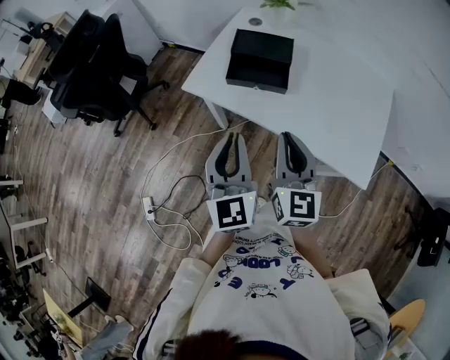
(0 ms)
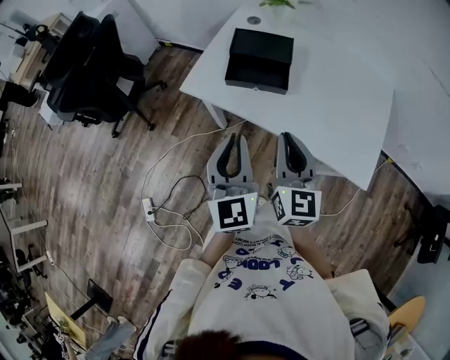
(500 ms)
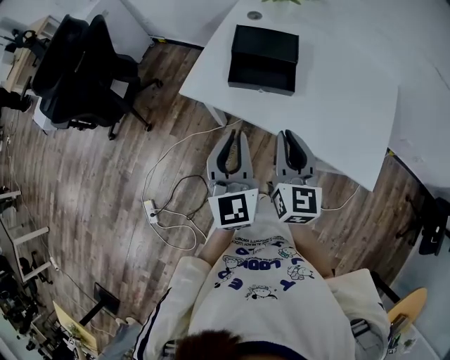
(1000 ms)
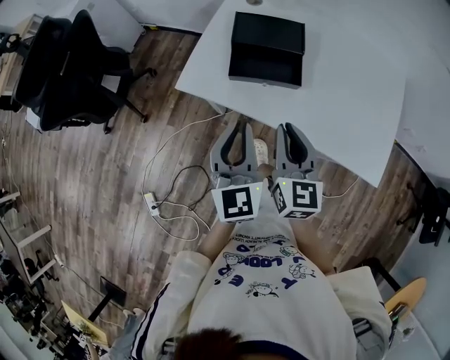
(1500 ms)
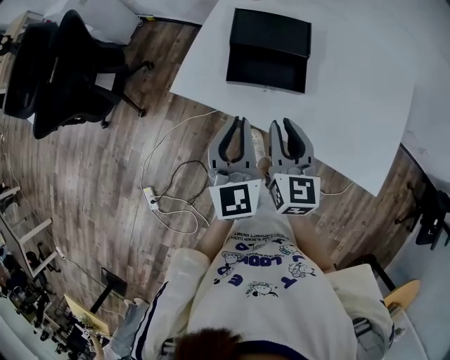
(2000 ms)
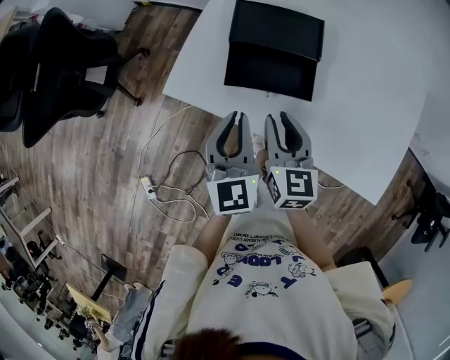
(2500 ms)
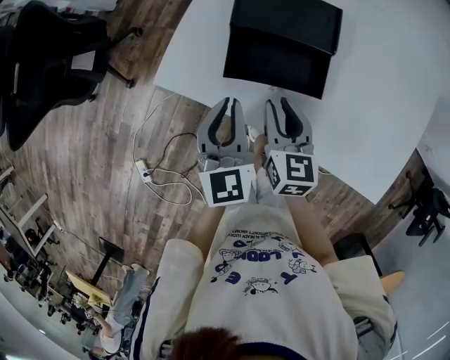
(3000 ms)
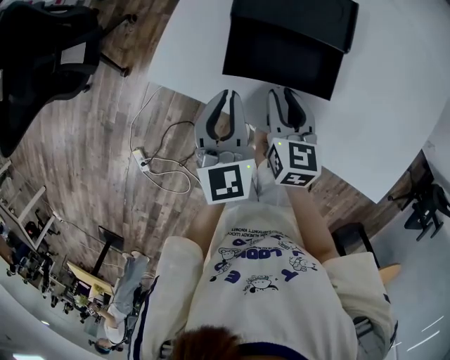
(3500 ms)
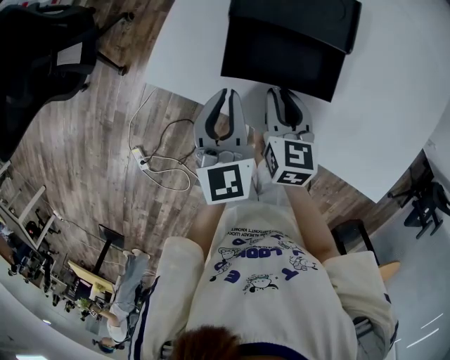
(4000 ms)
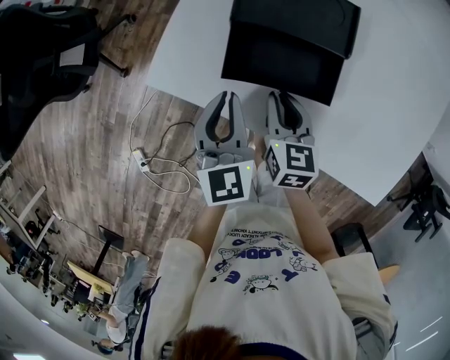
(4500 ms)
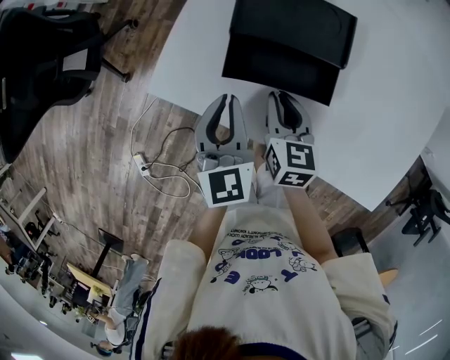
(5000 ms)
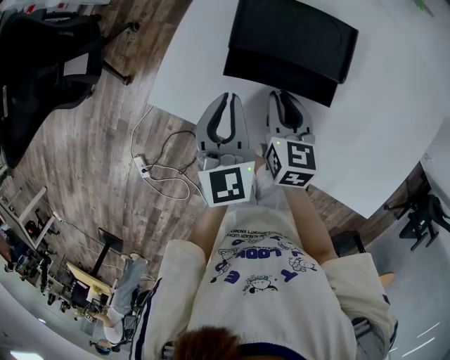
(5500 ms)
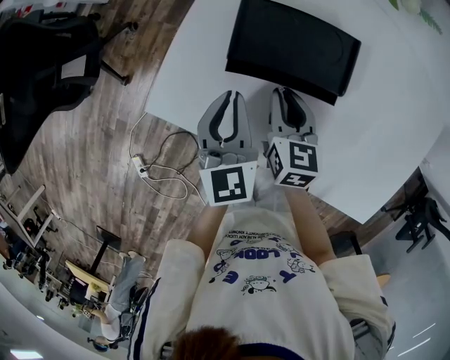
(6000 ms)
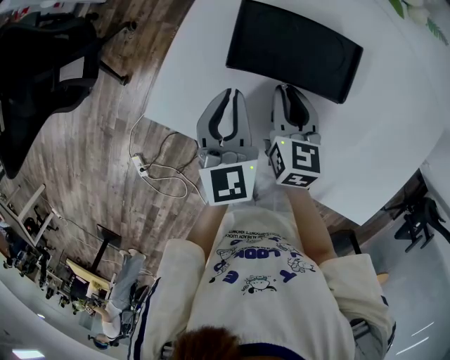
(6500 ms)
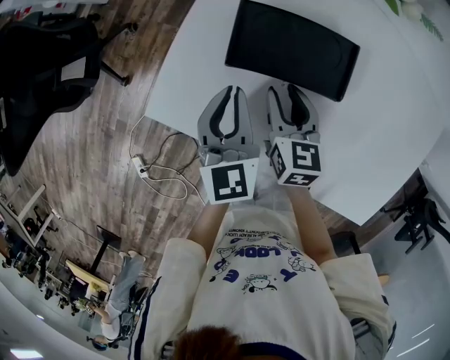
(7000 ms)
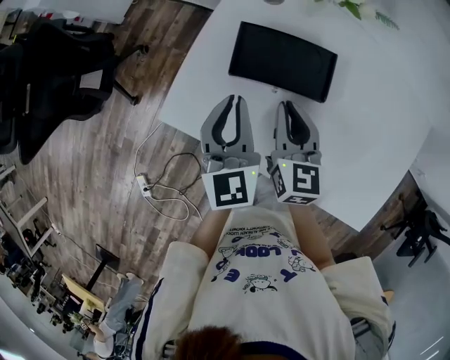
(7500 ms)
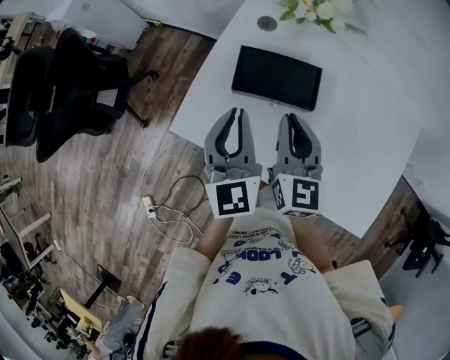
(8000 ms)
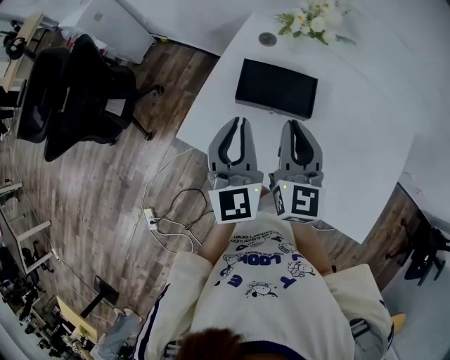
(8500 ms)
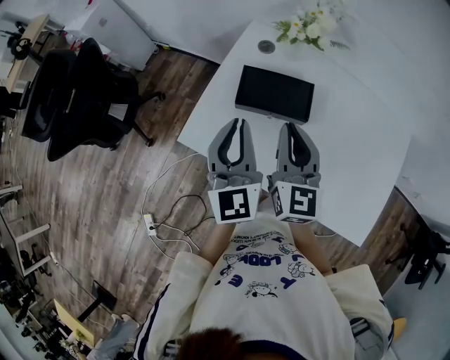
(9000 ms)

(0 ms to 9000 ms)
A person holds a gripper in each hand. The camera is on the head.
0 ms - 2000 ms: Both grippers move forward and downward, roughly 15 cm.
2000 ms - 4500 ms: The grippers both shift downward and forward by about 20 cm. The right gripper turns by about 20 degrees.
4500 ms - 7000 ms: Both grippers move forward, some 10 cm. The right gripper opens.
7000 ms - 9000 ms: The grippers both shift upward by about 20 cm. The left gripper swivels roughly 20 degrees. The right gripper rotates about 30 degrees, and closes up.

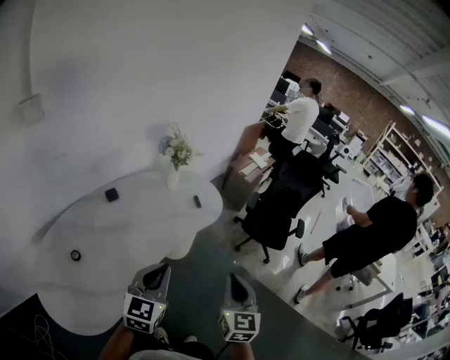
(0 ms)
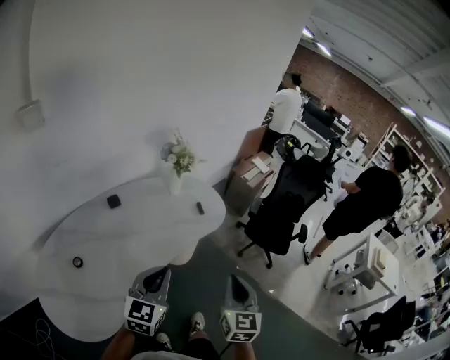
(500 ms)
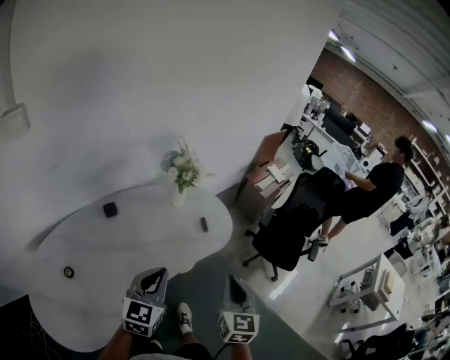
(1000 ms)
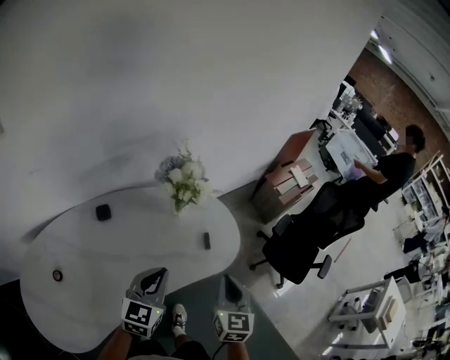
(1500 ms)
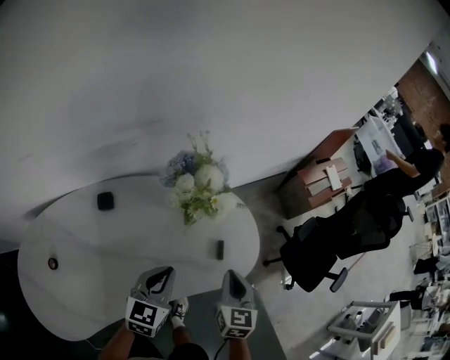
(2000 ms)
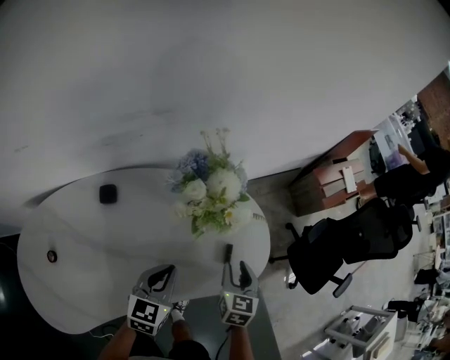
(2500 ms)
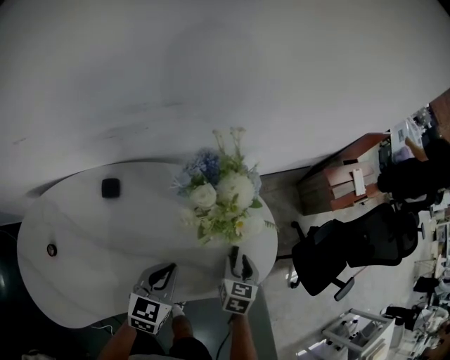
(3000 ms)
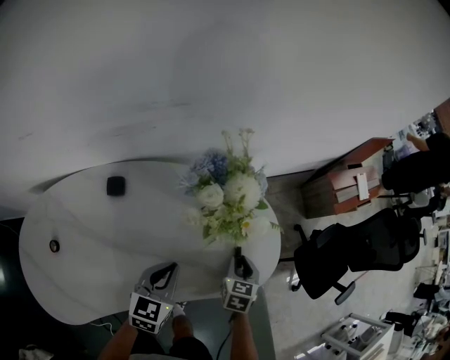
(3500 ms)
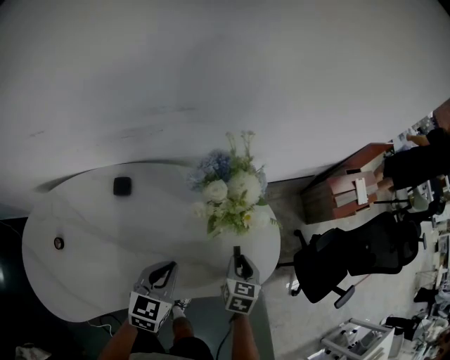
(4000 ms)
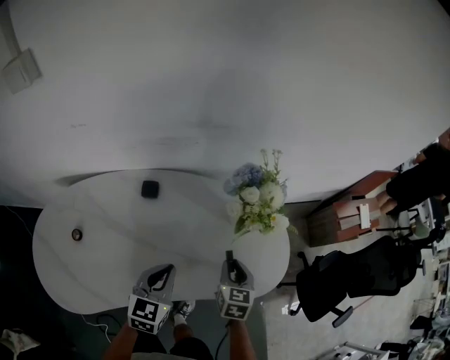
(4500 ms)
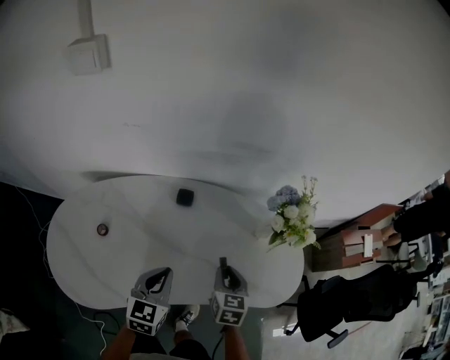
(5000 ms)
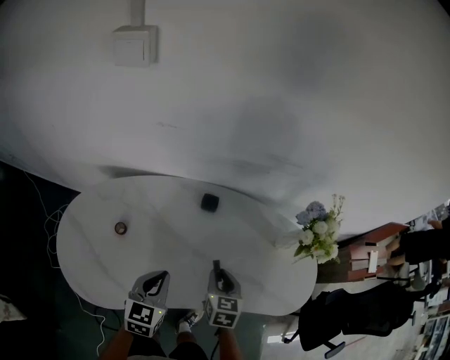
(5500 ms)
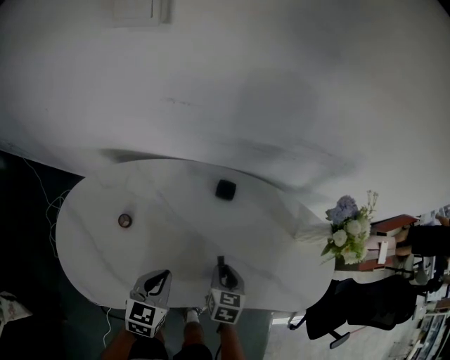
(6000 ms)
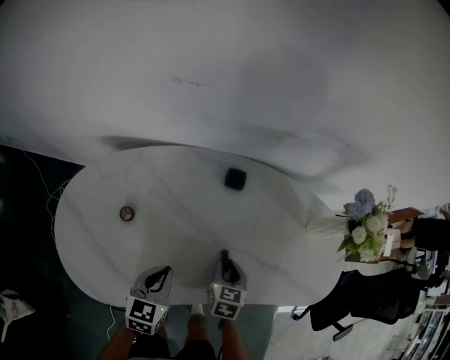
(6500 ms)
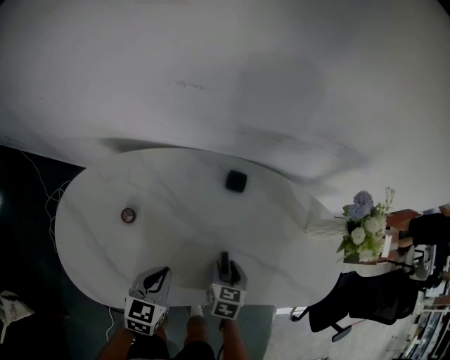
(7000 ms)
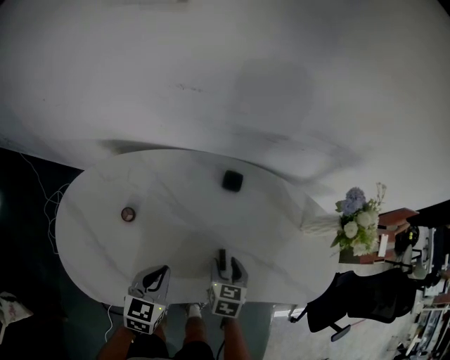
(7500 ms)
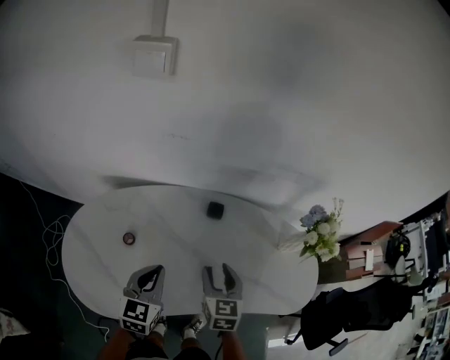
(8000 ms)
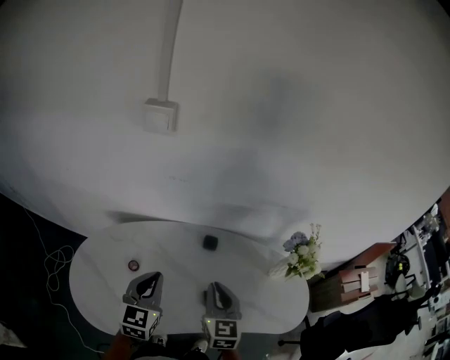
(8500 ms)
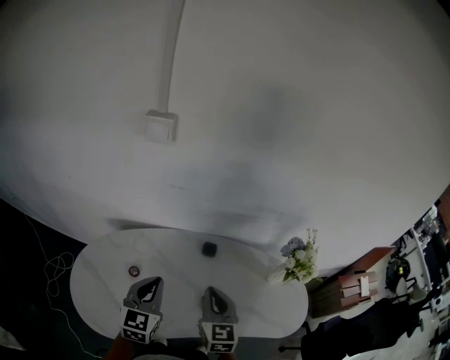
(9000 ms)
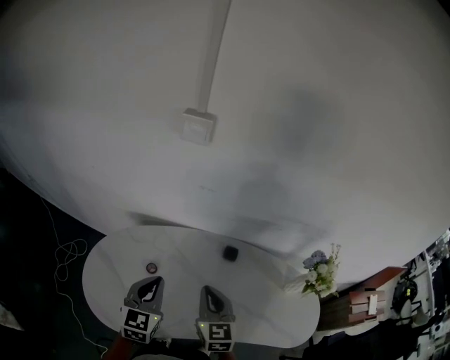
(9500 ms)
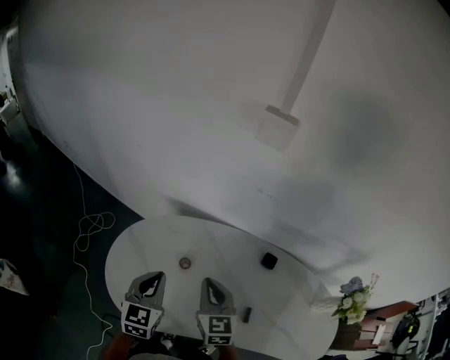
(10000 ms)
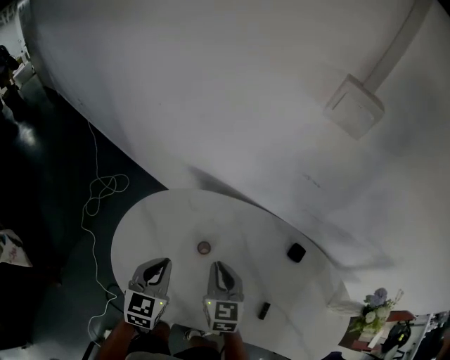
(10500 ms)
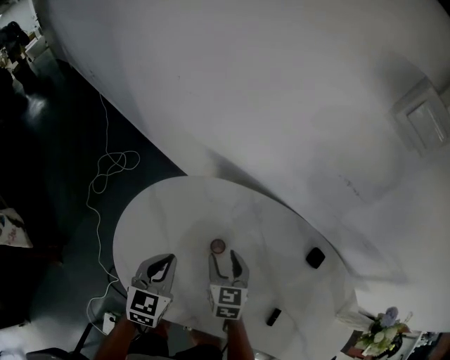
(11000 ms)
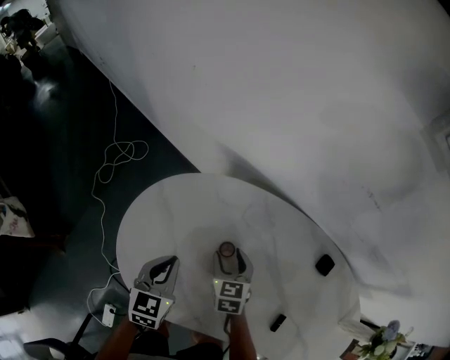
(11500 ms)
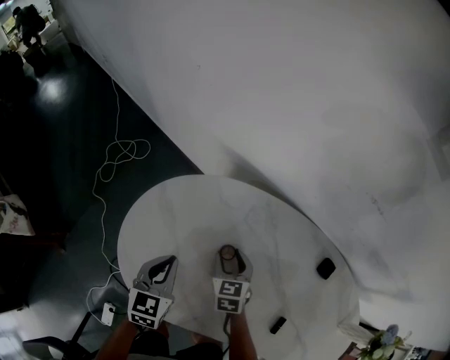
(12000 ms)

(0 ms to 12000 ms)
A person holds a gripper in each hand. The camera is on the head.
0 ms - 2000 ms: The grippers both shift forward and downward by some 40 cm. The left gripper swivels roughly 30 degrees, while the right gripper turns by about 30 degrees.
2000 ms - 4000 ms: The right gripper travels downward and forward by some 15 cm. Meanwhile the left gripper moves about 5 cm.
4000 ms - 6000 ms: Both grippers travel together to the left, about 30 cm. The right gripper changes its angle by some 20 degrees. The left gripper turns by some 20 degrees.
6000 ms - 8000 ms: The grippers both shift upward by roughly 10 cm. The right gripper opens its fingers.
8000 ms - 10000 ms: The left gripper ends up some 20 cm from where it was, and rotates approximately 20 degrees. Meanwhile the right gripper shifts by about 25 cm, turns by some 30 degrees, and closes.
10000 ms - 12000 ms: The left gripper moves downward and to the left, some 20 cm, while the right gripper is displaced downward by some 25 cm, swivels some 30 degrees, and opens.

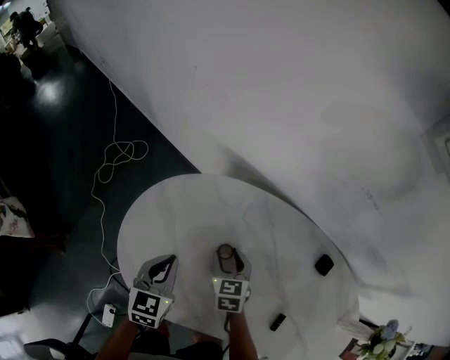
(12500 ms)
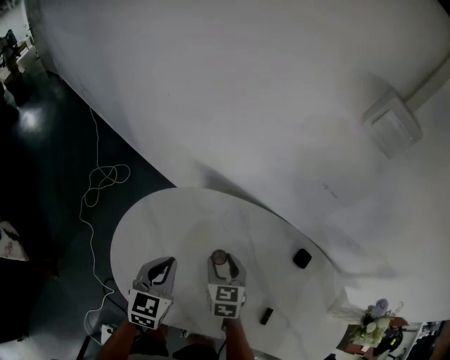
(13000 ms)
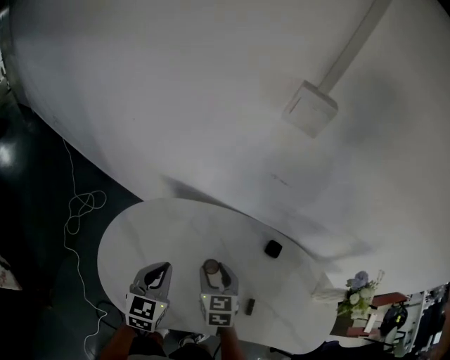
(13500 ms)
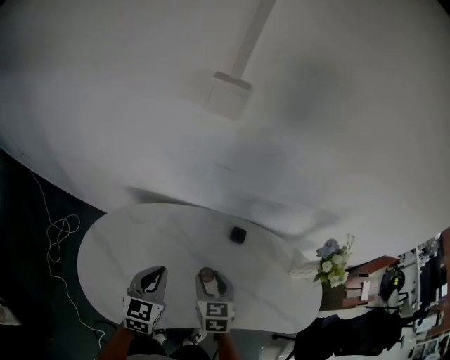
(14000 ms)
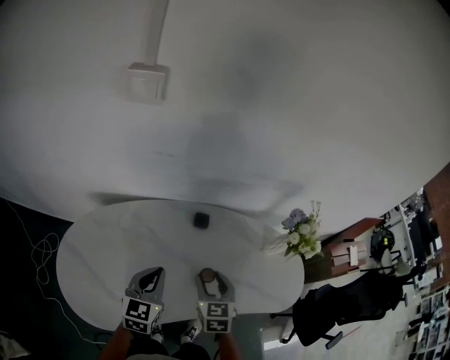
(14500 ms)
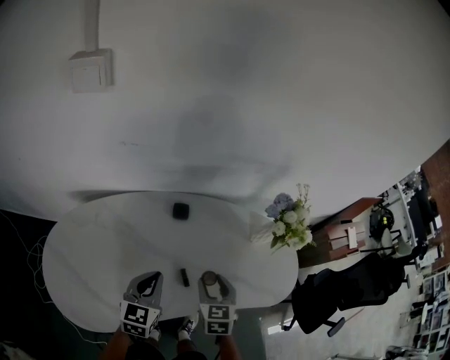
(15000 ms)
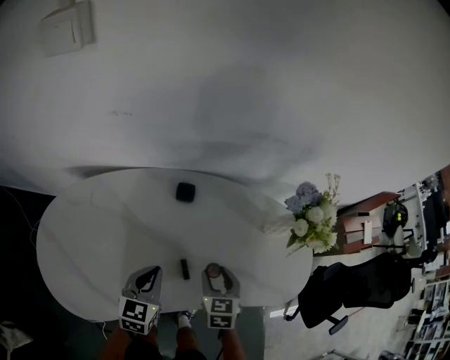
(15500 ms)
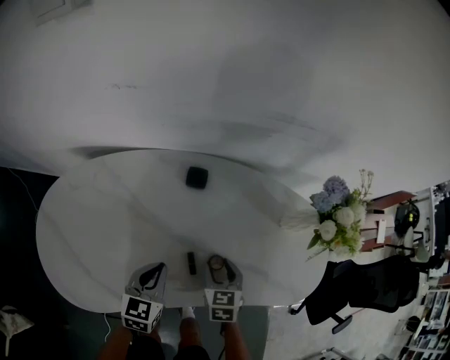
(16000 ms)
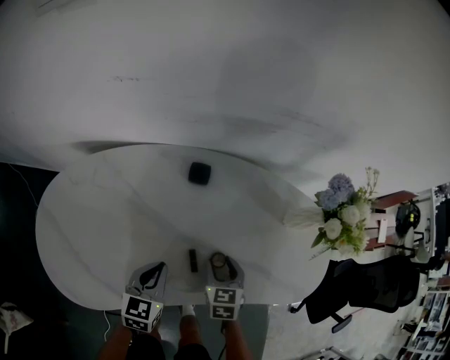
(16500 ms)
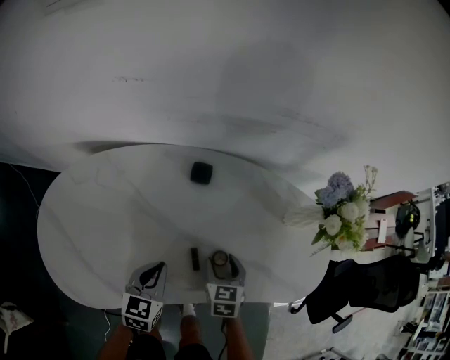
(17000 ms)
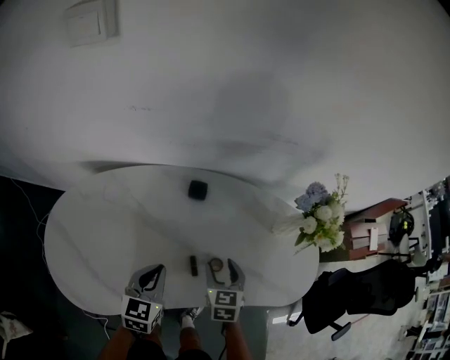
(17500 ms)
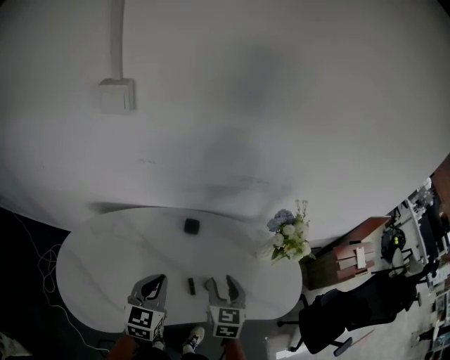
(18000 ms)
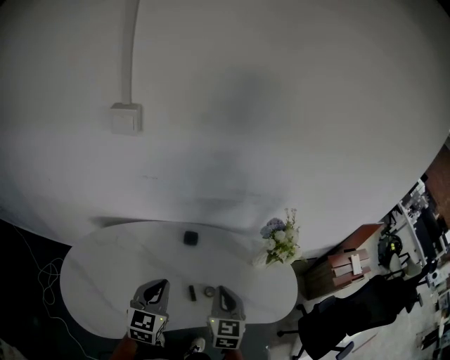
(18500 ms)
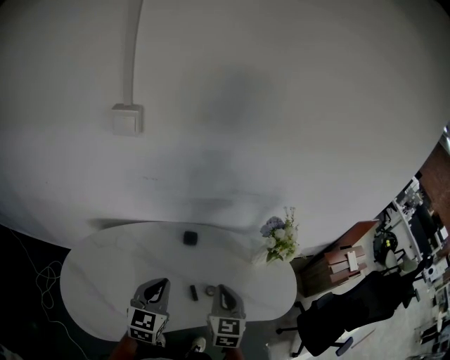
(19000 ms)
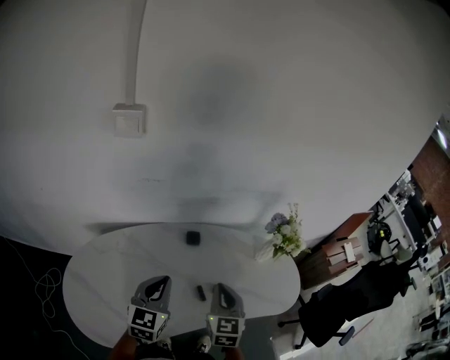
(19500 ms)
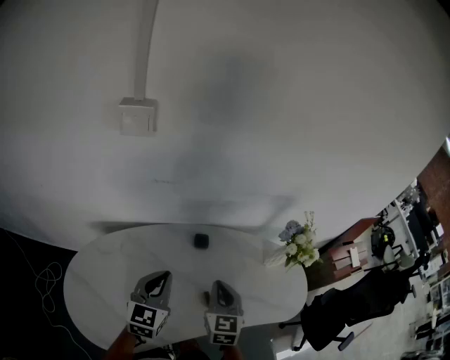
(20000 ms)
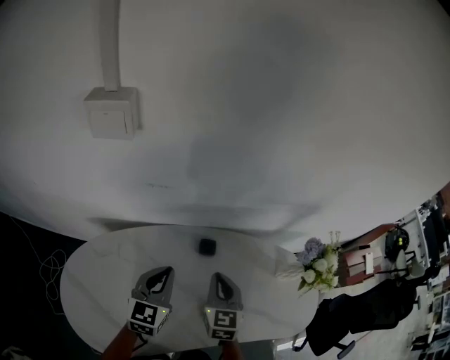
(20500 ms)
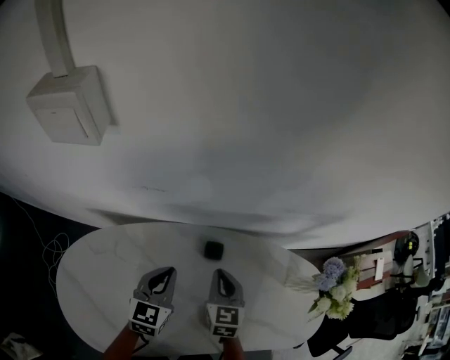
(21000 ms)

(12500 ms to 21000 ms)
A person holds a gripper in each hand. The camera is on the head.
12500 ms - 14500 ms: The left gripper changes place by approximately 30 cm, and rotates roughly 40 degrees, while the right gripper changes place by roughly 40 cm, and rotates about 40 degrees.
14500 ms - 16500 ms: Both grippers travel together downward and to the right, approximately 20 cm.
16500 ms - 19000 ms: The two grippers go roughly 25 cm upward. The left gripper rotates roughly 20 degrees. Meanwhile the right gripper changes its angle by roughly 30 degrees, and closes up.
19000 ms - 21000 ms: The right gripper heads forward, downward and to the left, covering some 25 cm. Meanwhile the left gripper heads forward and downward, covering approximately 25 cm.
